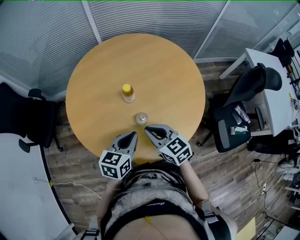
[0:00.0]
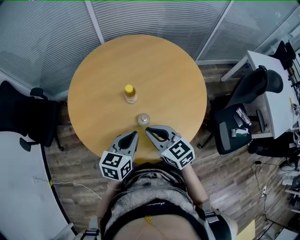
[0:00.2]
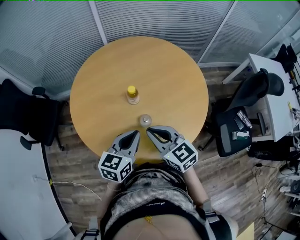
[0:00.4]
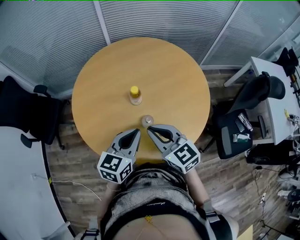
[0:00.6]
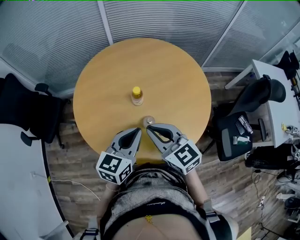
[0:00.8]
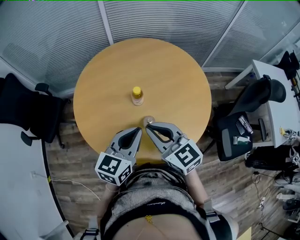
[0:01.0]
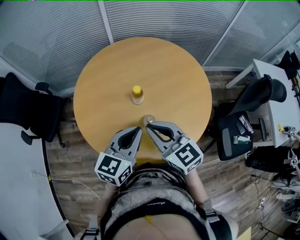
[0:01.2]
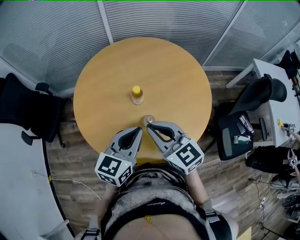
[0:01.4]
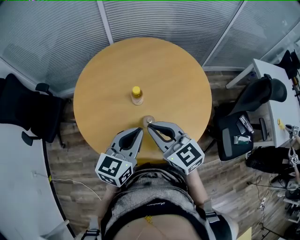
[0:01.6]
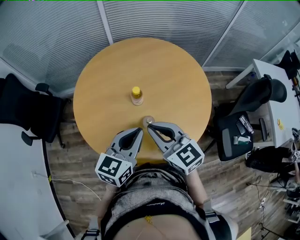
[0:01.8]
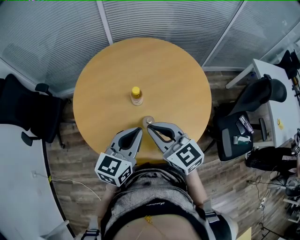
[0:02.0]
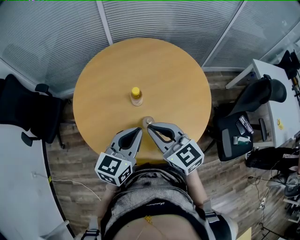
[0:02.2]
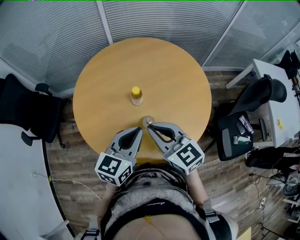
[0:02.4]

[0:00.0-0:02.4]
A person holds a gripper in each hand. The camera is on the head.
0:00.0 to 0:01.2: The grippers both shift upward by roughly 10 cm.
0:01.2 to 0:02.4: The two grippers keep their place.

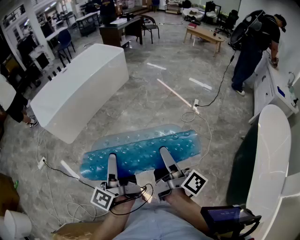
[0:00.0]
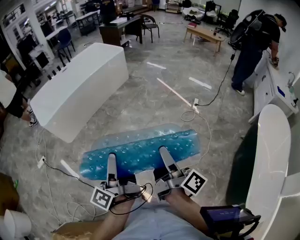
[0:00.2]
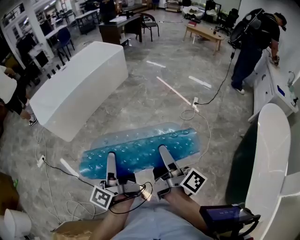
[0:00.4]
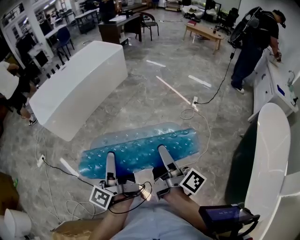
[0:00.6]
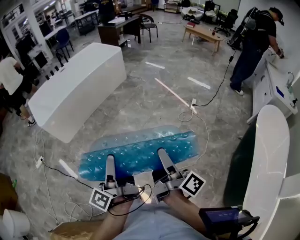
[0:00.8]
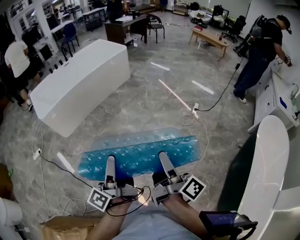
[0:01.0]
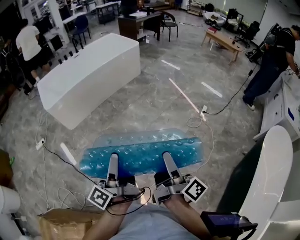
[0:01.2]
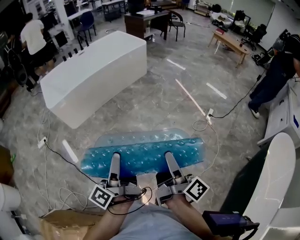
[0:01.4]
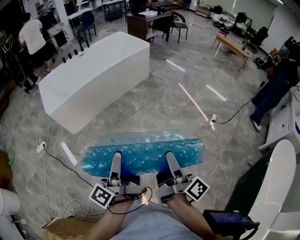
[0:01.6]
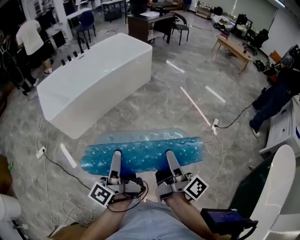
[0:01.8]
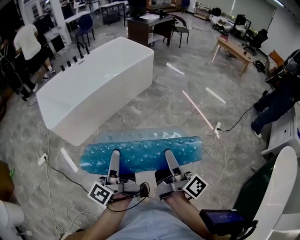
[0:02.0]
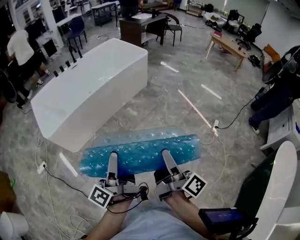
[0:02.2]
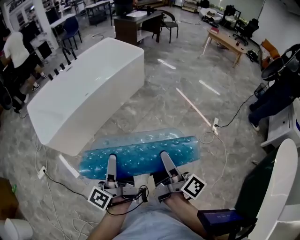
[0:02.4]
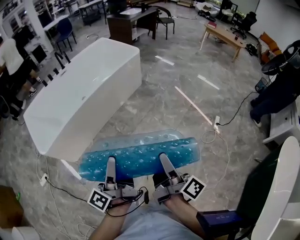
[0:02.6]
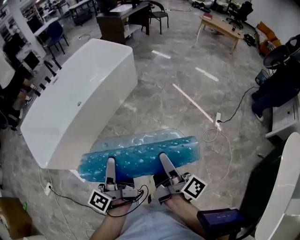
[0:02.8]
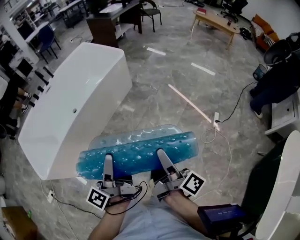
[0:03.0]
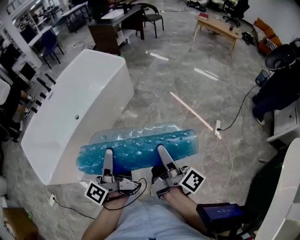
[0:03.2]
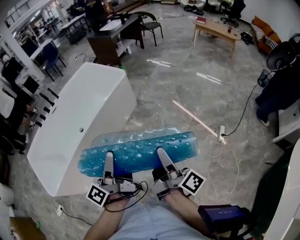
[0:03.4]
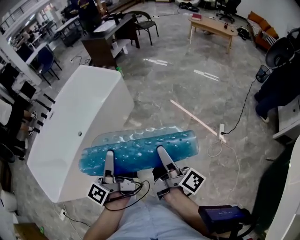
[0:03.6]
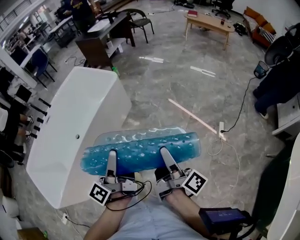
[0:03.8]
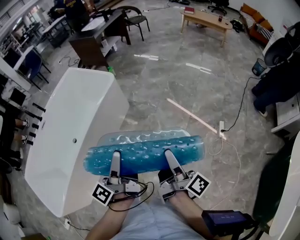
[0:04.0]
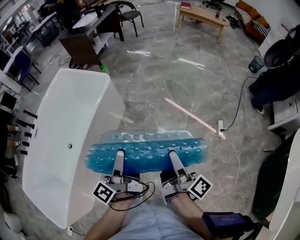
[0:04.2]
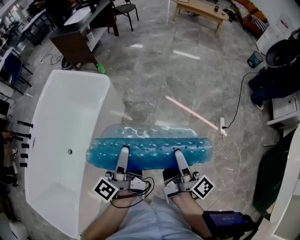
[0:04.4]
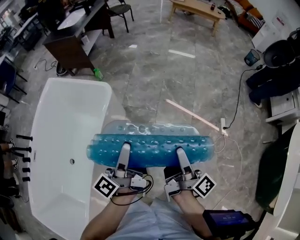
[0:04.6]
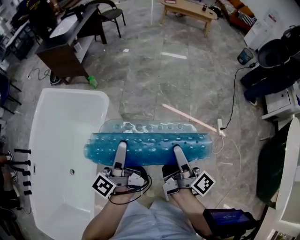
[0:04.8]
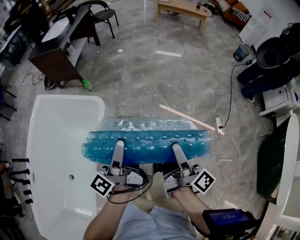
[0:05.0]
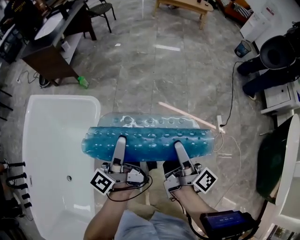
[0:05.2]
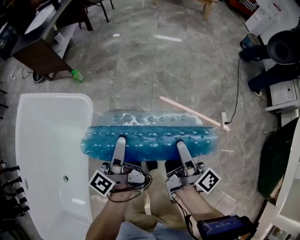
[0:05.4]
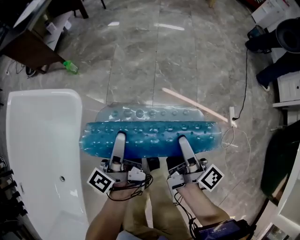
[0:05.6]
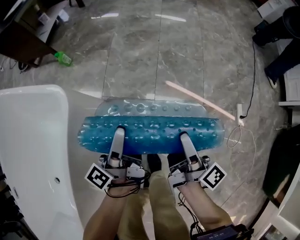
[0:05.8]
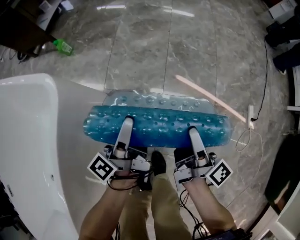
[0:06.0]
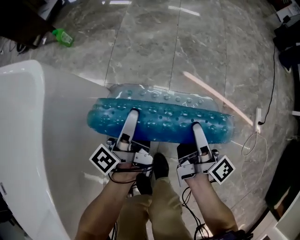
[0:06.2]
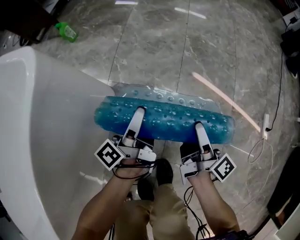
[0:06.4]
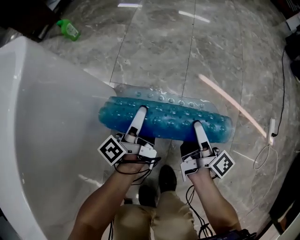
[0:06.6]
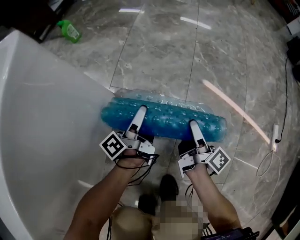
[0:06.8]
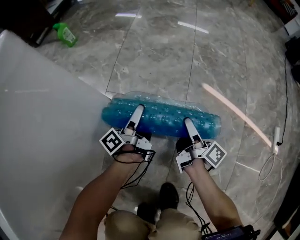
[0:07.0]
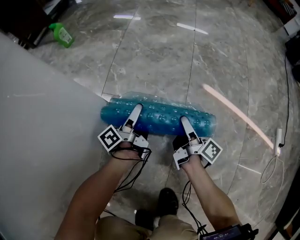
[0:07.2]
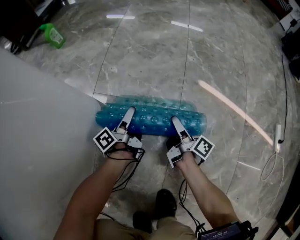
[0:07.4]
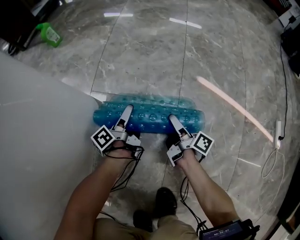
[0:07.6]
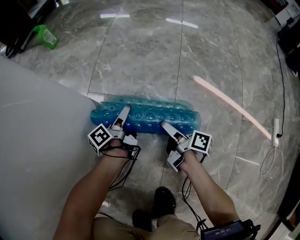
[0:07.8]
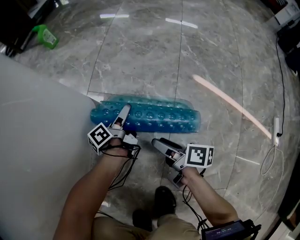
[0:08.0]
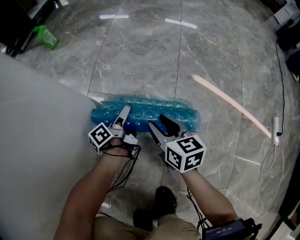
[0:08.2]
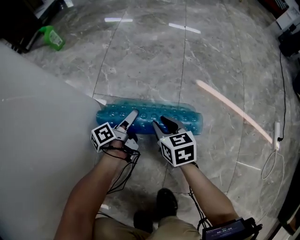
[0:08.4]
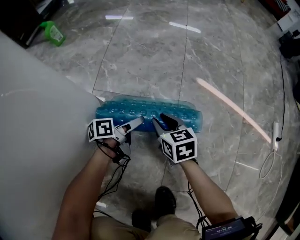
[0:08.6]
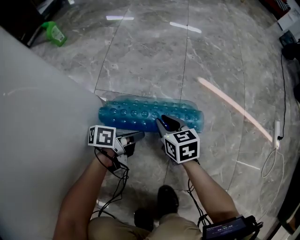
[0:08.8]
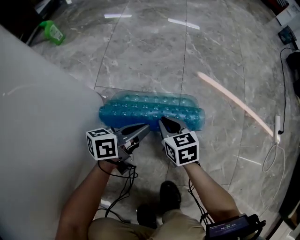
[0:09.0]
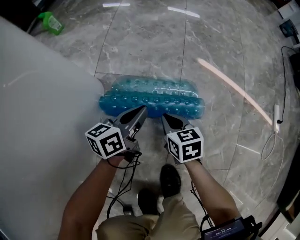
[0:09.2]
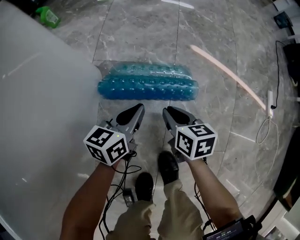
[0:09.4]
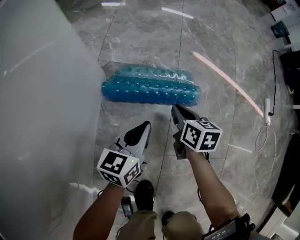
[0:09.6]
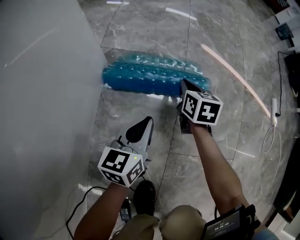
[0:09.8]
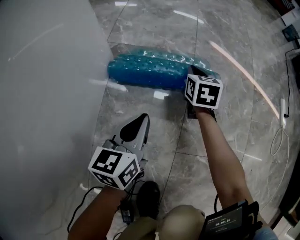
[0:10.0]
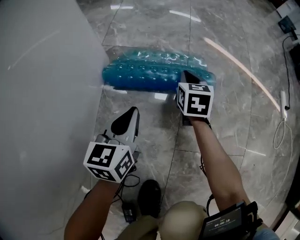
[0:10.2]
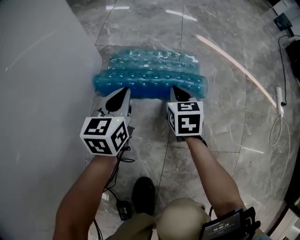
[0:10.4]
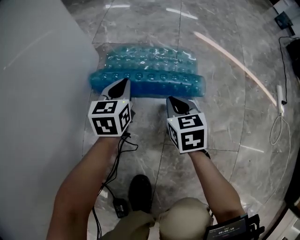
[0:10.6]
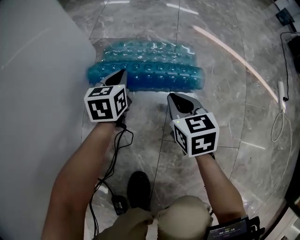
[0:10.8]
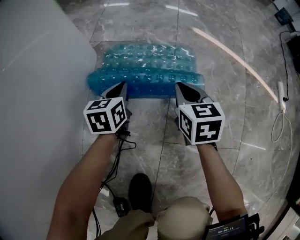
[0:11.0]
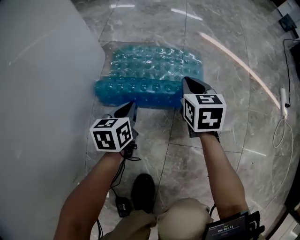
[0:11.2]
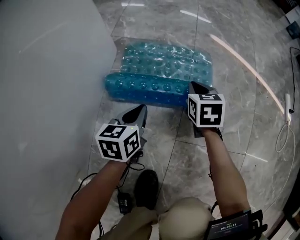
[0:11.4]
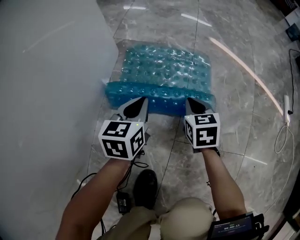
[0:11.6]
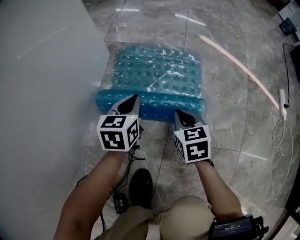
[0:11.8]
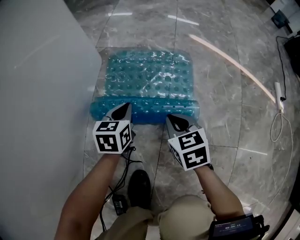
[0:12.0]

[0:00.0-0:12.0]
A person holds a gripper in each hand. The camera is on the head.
0:00.0 to 0:01.6: The grippers both shift forward by some 15 cm.
0:01.6 to 0:03.0: The two grippers travel together, forward, roughly 40 cm.
0:03.0 to 0:04.4: The grippers both shift forward by some 40 cm. The left gripper changes its angle by about 30 degrees, while the right gripper changes its angle by some 20 degrees.
0:04.4 to 0:06.0: The grippers both shift downward and forward by about 60 cm.
0:06.0 to 0:07.6: Both grippers travel together downward, about 50 cm.
0:07.6 to 0:09.0: The right gripper moves approximately 10 cm, twists approximately 70 degrees counterclockwise, seen from behind, and closes. Meanwhile the left gripper changes place by roughly 15 cm, rotates some 50 degrees, and closes its fingers.
0:09.0 to 0:10.4: The left gripper heads backward and to the left, covering roughly 10 cm, and changes its angle by about 50 degrees, while the right gripper swings forward and backward, about 10 cm each way, with 2 reversals.
0:10.4 to 0:12.0: The left gripper goes some 10 cm backward and downward, while the right gripper goes forward and backward, approximately 15 cm each way, reversing 2 times.

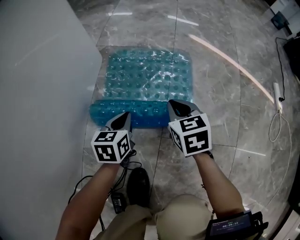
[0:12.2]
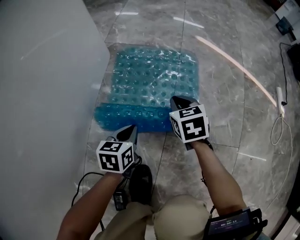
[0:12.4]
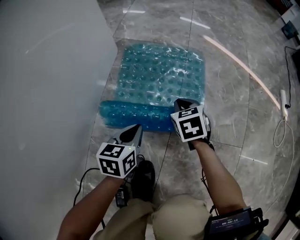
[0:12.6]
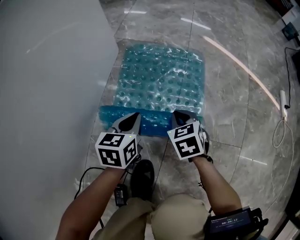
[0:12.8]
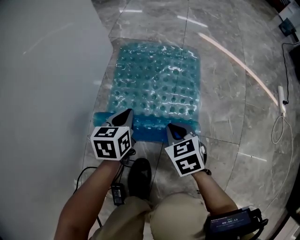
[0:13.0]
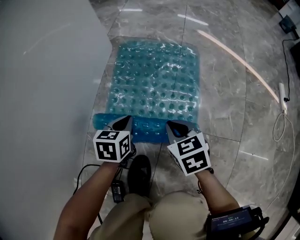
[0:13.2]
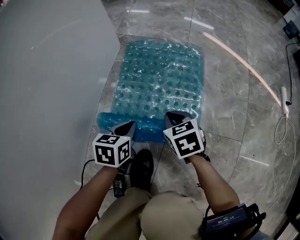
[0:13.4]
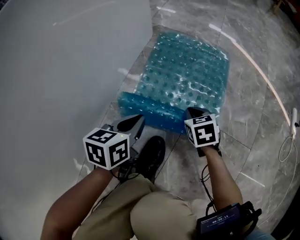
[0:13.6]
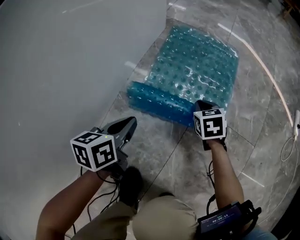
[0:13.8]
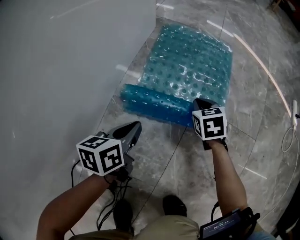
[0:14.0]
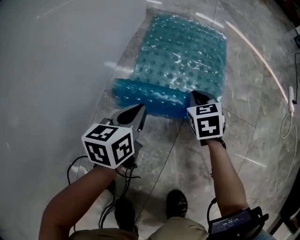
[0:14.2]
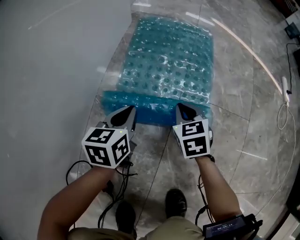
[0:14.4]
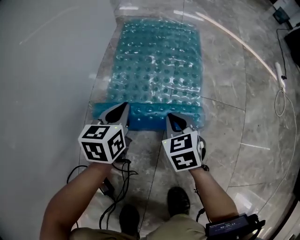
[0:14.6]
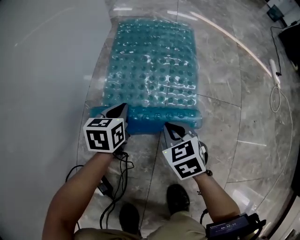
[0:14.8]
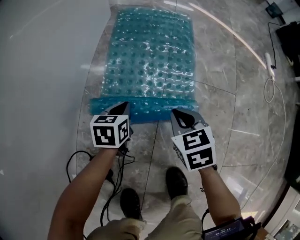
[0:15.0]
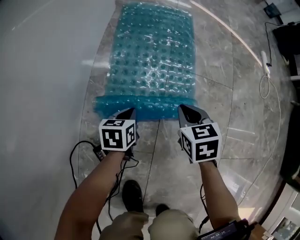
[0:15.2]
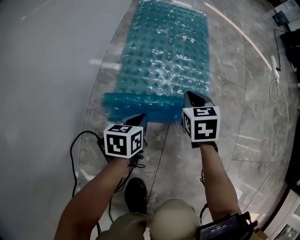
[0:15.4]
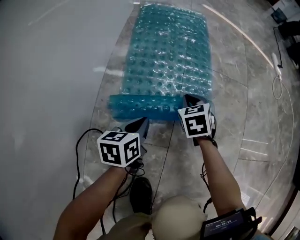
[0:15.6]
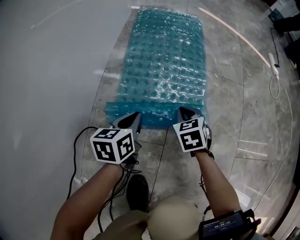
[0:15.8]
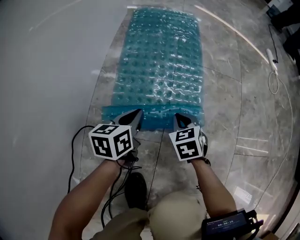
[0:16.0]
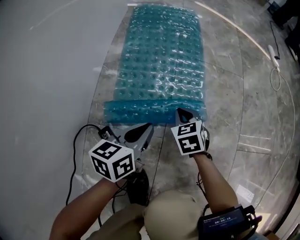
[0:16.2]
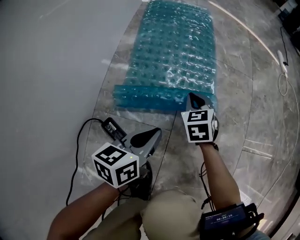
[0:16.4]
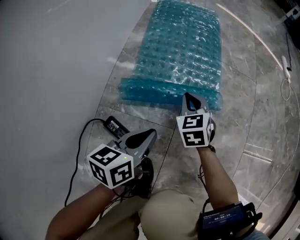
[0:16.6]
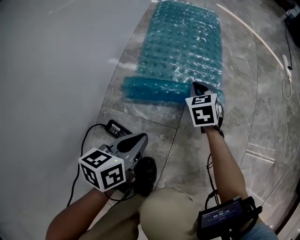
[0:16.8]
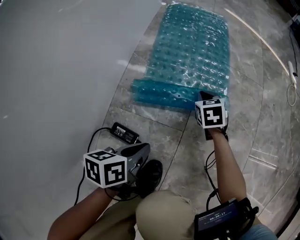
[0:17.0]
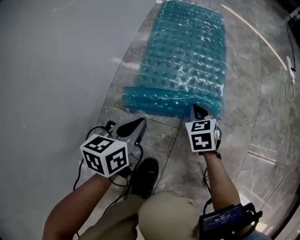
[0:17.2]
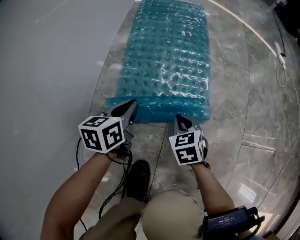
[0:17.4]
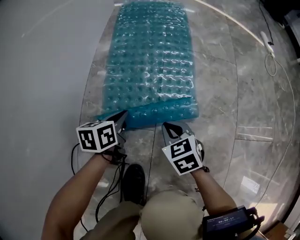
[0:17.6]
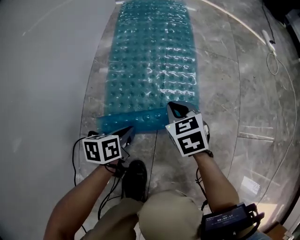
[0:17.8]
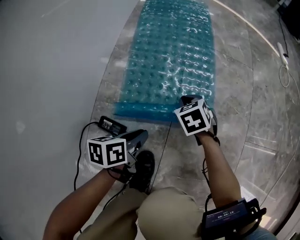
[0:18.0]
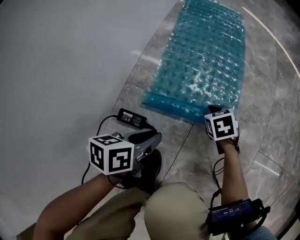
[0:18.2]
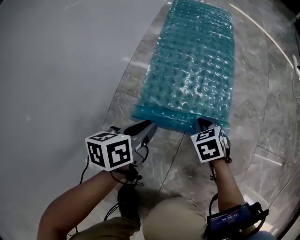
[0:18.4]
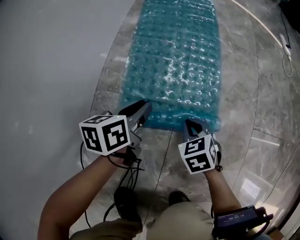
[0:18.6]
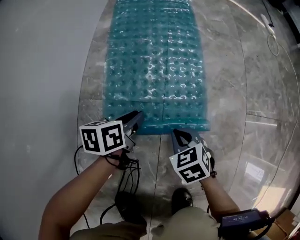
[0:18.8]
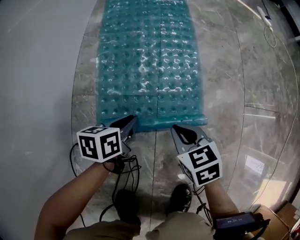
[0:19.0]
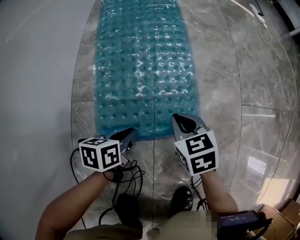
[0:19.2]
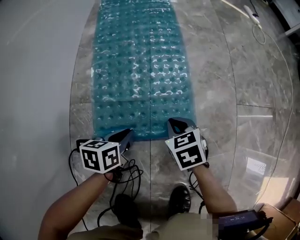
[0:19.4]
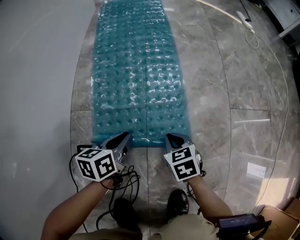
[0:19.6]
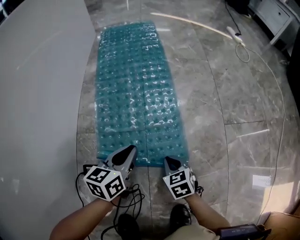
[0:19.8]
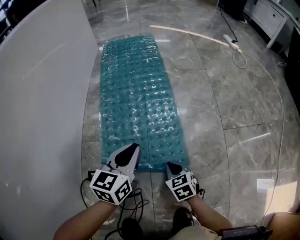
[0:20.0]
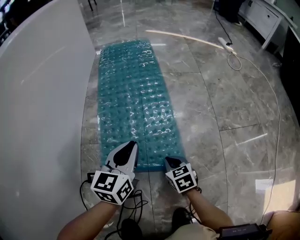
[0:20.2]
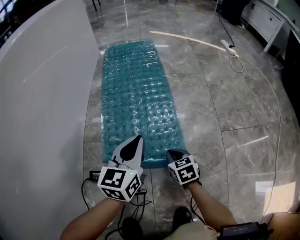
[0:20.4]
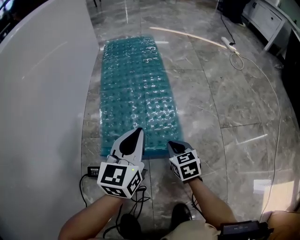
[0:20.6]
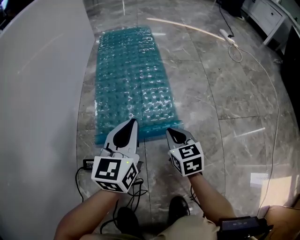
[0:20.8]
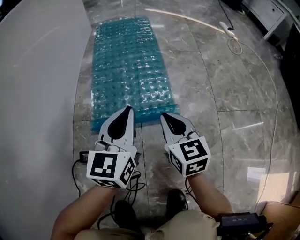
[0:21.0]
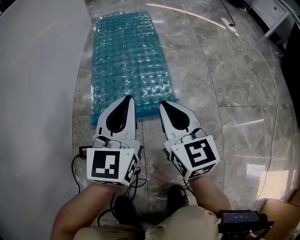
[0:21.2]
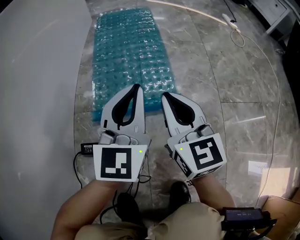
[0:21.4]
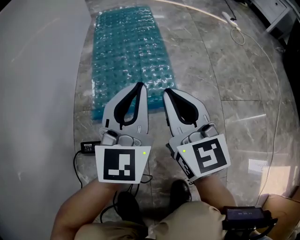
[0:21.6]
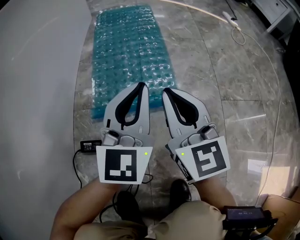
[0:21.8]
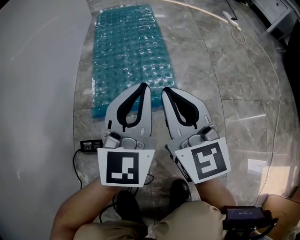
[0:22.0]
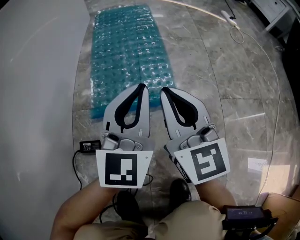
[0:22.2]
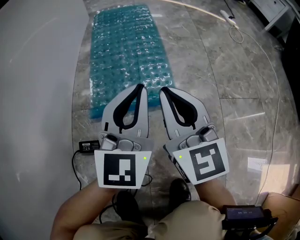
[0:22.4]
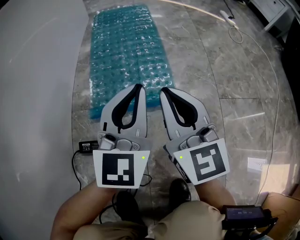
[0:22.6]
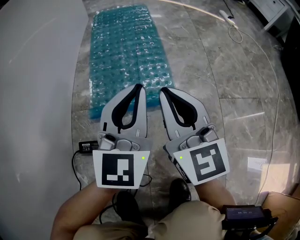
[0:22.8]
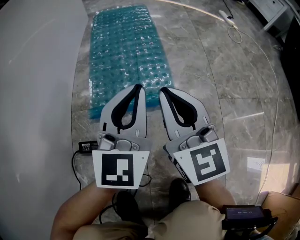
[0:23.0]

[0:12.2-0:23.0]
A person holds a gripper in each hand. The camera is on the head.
0:12.2 to 0:13.8: The right gripper shifts about 15 cm backward, downward and to the left. The left gripper goes forward and backward, about 25 cm each way, reversing 2 times, and swivels about 20 degrees.
0:13.8 to 0:15.2: The left gripper travels downward, backward and to the right by some 15 cm, and turns by some 20 degrees. The right gripper shifts about 20 cm backward and upward.
0:15.2 to 0:16.8: The right gripper shifts some 5 cm downward. The left gripper travels backward and upward by about 25 cm.
0:16.8 to 0:18.4: The right gripper goes forward and backward, approximately 20 cm each way, reversing 2 times. Meanwhile the left gripper travels forward and back again, about 10 cm each way.
0:18.4 to 0:20.0: The right gripper goes forward and backward, about 10 cm each way, reversing 2 times, and rotates approximately 20 degrees, while the left gripper goes approximately 10 cm to the right, moves roughly 10 cm downward and comes back, and rotates approximately 40 degrees.
0:20.0 to 0:21.4: The right gripper travels upward by approximately 25 cm, and tilts its fingers some 40 degrees upward. The left gripper heads upward, covering roughly 15 cm, and turns by some 30 degrees.
0:21.4 to 0:23.0: The grippers stay close to where they were, moving slightly.
